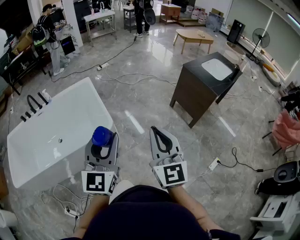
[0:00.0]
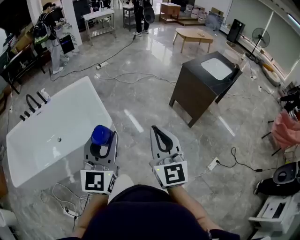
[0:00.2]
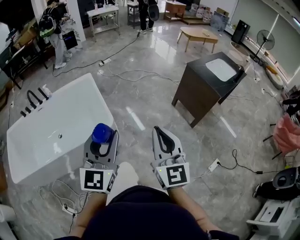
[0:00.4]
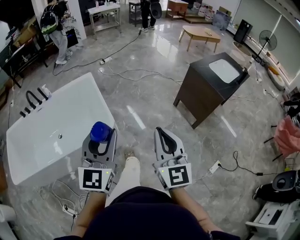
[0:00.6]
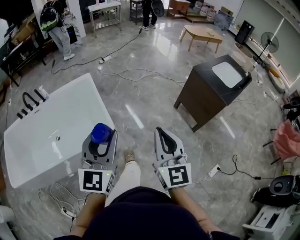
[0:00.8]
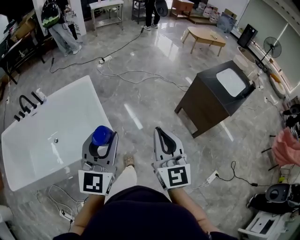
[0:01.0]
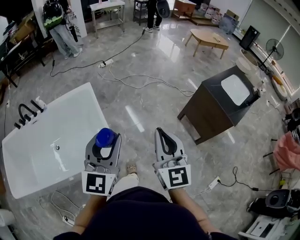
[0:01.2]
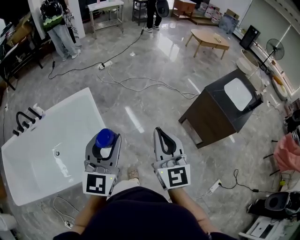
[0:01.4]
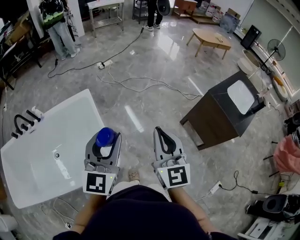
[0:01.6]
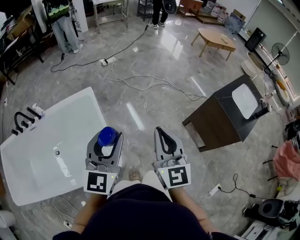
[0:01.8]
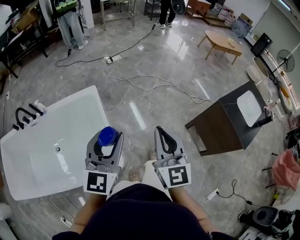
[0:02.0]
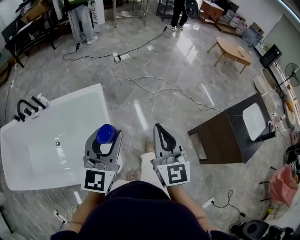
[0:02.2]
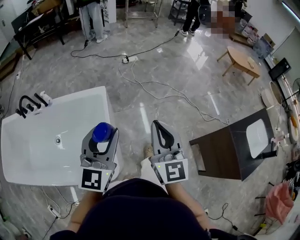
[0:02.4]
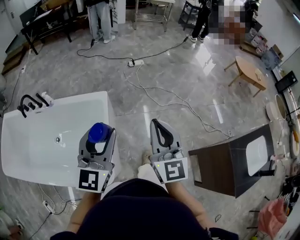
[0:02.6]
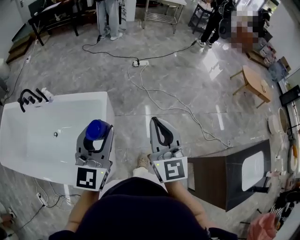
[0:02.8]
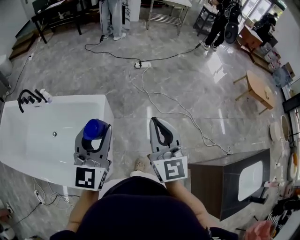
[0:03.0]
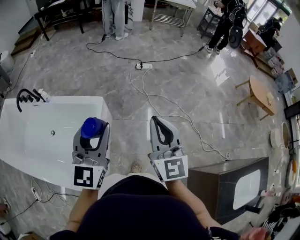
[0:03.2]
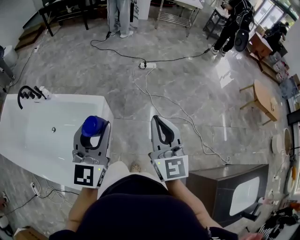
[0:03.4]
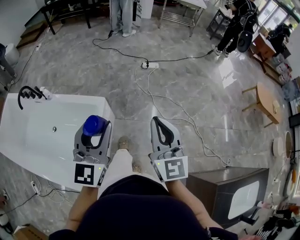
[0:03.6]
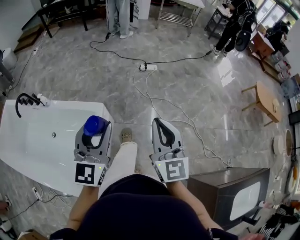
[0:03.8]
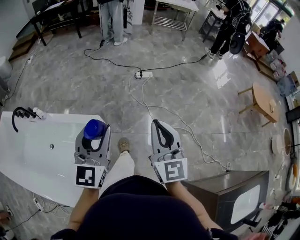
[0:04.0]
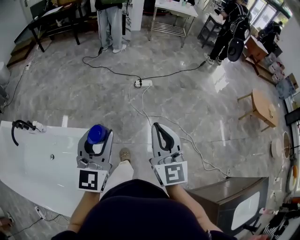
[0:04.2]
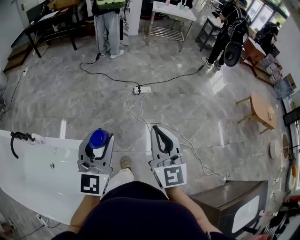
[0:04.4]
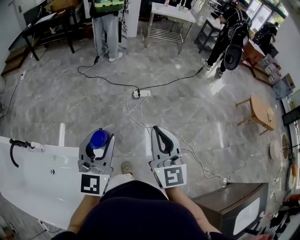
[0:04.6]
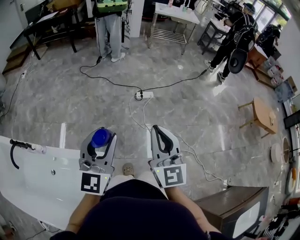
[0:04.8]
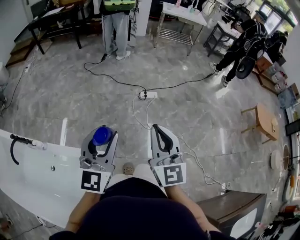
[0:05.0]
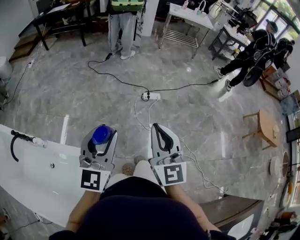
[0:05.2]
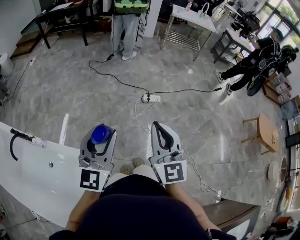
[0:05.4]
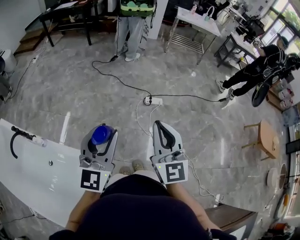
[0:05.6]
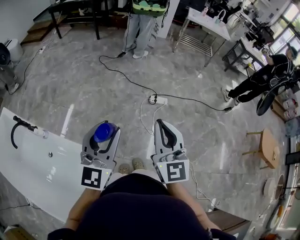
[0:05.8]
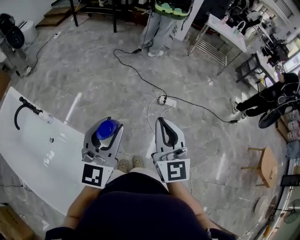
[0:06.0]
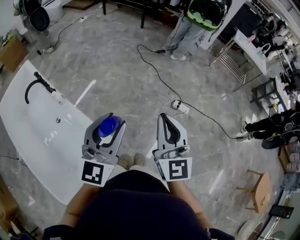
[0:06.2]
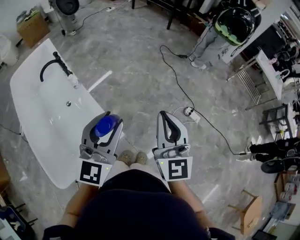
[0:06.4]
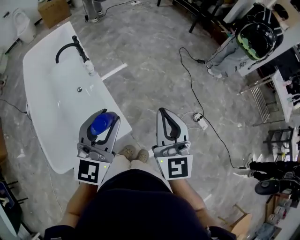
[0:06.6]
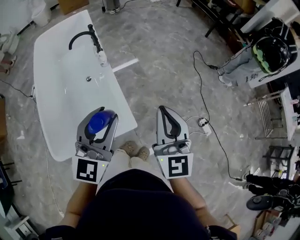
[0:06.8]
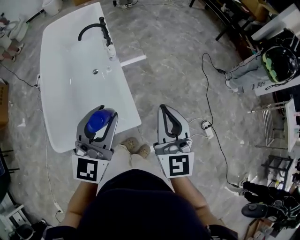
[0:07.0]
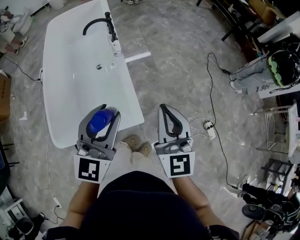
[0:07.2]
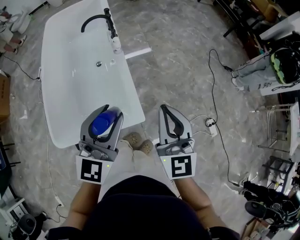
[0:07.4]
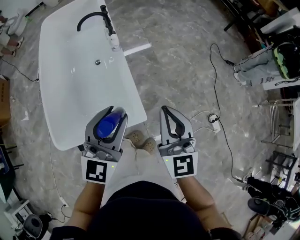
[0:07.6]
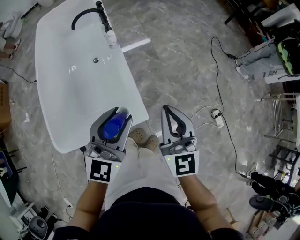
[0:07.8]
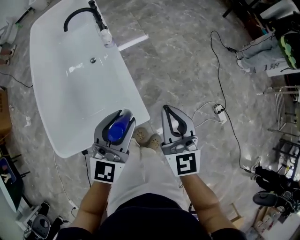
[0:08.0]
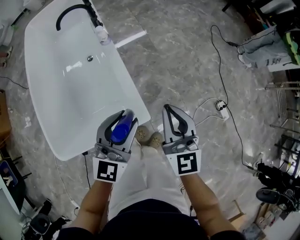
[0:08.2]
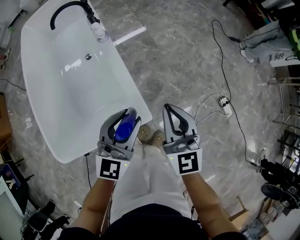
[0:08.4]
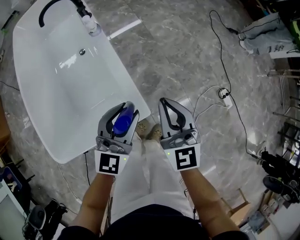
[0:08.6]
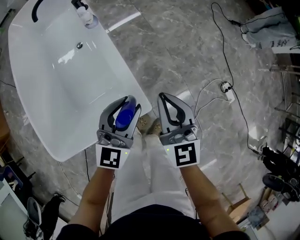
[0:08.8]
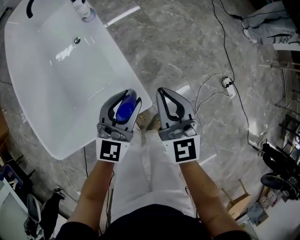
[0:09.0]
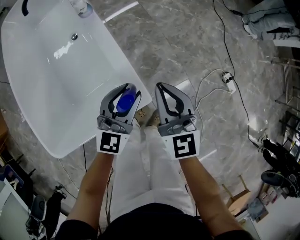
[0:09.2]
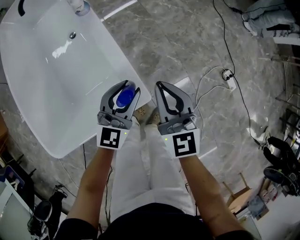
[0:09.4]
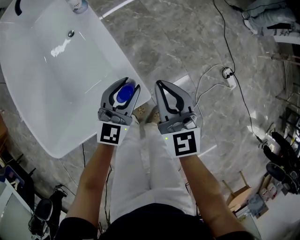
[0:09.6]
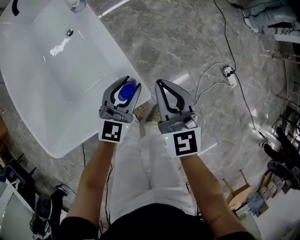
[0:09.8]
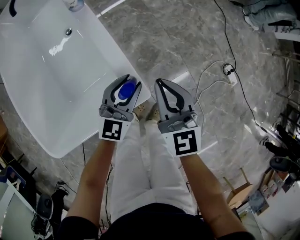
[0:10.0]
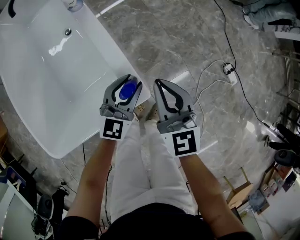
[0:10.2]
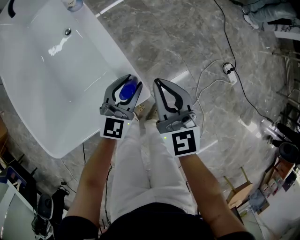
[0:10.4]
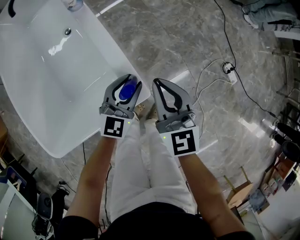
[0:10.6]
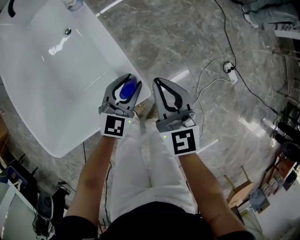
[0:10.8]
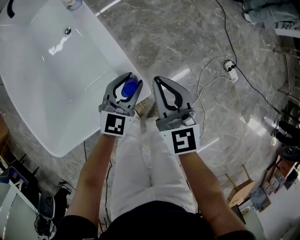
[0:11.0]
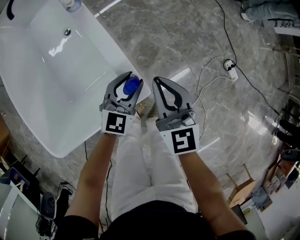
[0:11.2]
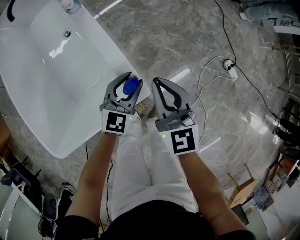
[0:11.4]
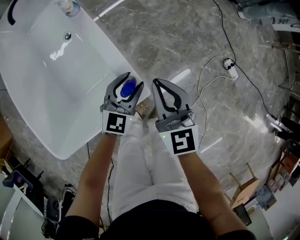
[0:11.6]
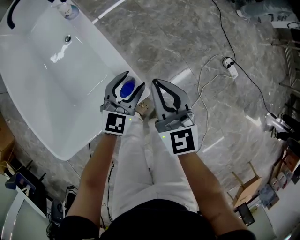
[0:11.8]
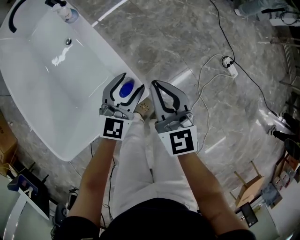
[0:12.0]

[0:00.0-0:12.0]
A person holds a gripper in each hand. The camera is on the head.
0:00.0 to 0:01.6: Both grippers travel together forward, about 40 cm.
0:01.6 to 0:03.0: The right gripper moves some 35 cm, and rotates approximately 30 degrees. The left gripper moves some 30 cm, and turns by roughly 30 degrees.
0:03.0 to 0:04.4: The two grippers go about 30 cm forward.
0:04.4 to 0:06.0: The grippers both shift forward by some 20 cm.
0:06.0 to 0:07.6: The right gripper shifts by about 25 cm, and turns by about 50 degrees; the left gripper changes place by roughly 25 cm, and rotates about 50 degrees.
0:07.6 to 0:09.0: Both grippers travel together downward, approximately 25 cm.
0:09.0 to 0:10.4: The left gripper heads downward, covering some 10 cm.
0:10.4 to 0:12.0: The left gripper opens its fingers.

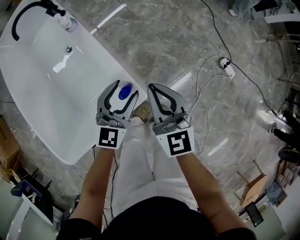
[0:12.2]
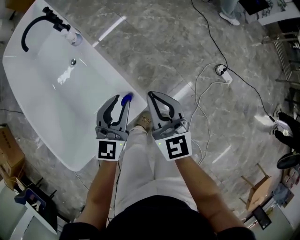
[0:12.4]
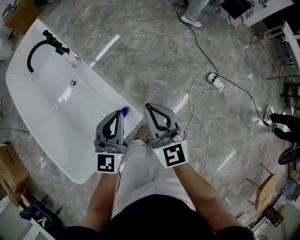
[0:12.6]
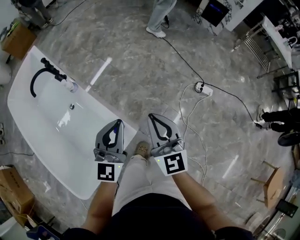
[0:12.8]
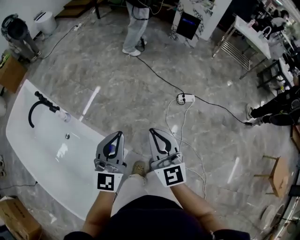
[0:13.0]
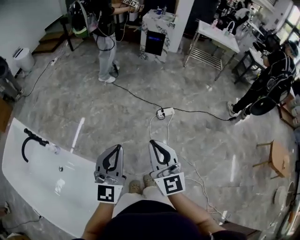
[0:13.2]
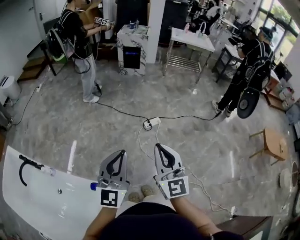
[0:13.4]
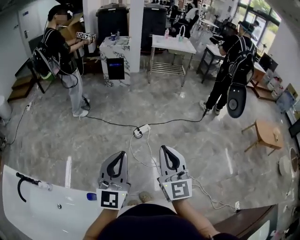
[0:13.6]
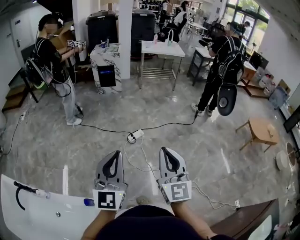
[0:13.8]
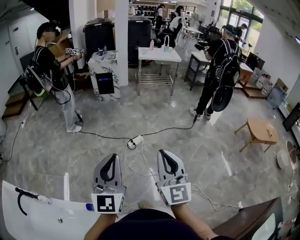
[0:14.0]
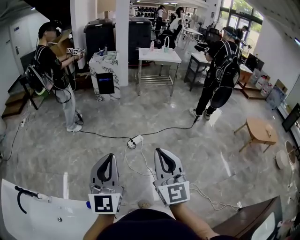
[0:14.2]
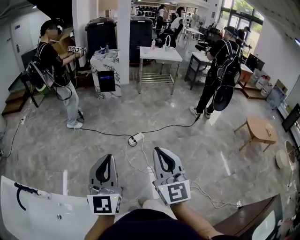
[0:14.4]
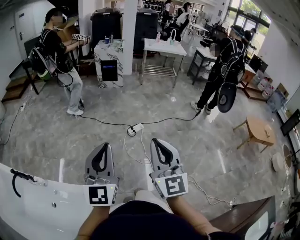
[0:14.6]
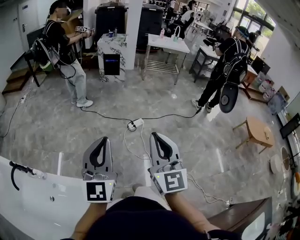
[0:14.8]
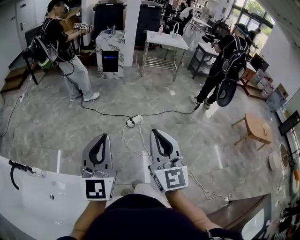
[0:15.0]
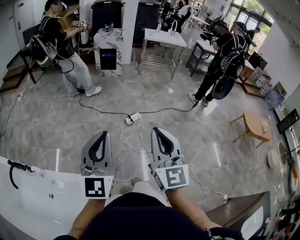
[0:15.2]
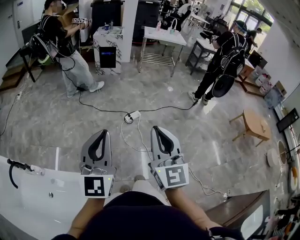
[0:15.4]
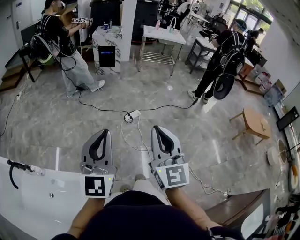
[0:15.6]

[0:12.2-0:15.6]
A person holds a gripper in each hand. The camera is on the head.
0:12.2 to 0:13.8: The left gripper shifts about 40 cm upward, rotates some 50 degrees, and closes its fingers. Meanwhile the right gripper ends up some 60 cm from where it was, and turns by about 70 degrees.
0:13.8 to 0:15.6: The grippers both shift backward and to the left by some 10 cm.

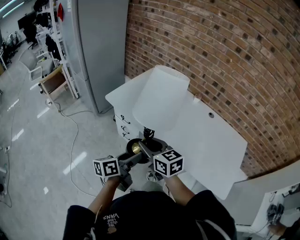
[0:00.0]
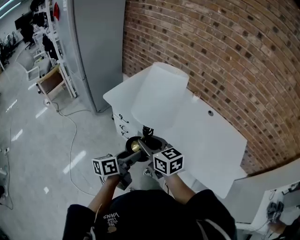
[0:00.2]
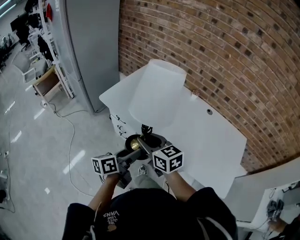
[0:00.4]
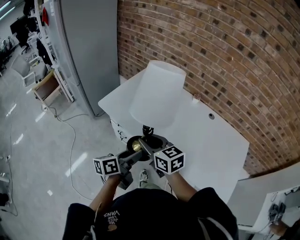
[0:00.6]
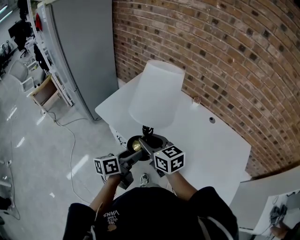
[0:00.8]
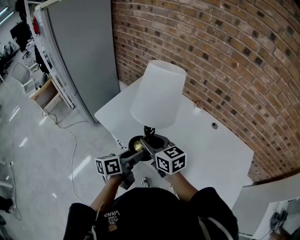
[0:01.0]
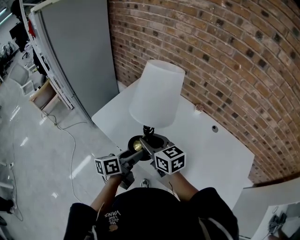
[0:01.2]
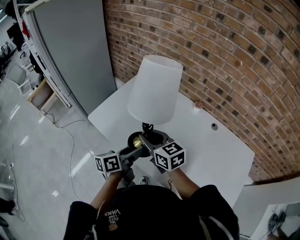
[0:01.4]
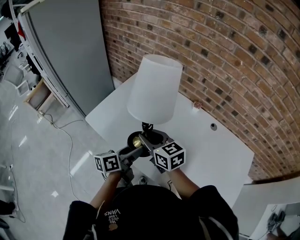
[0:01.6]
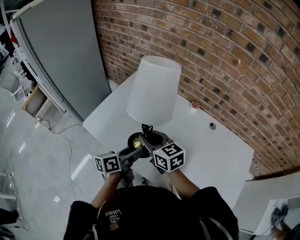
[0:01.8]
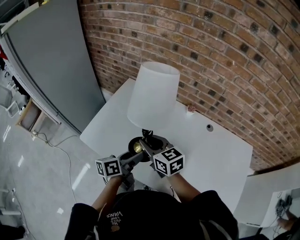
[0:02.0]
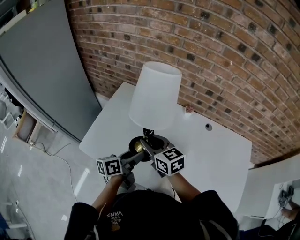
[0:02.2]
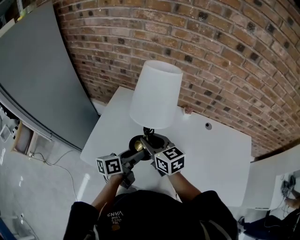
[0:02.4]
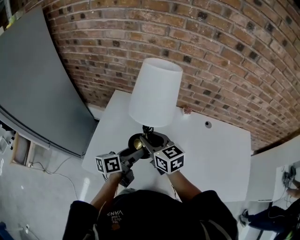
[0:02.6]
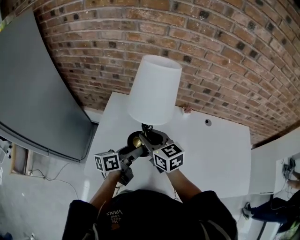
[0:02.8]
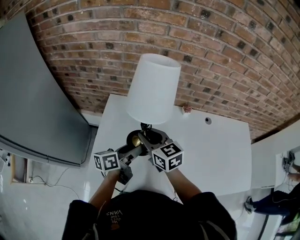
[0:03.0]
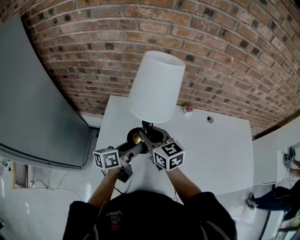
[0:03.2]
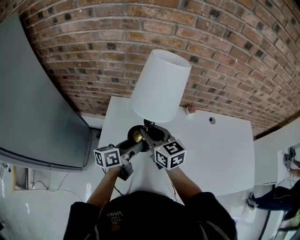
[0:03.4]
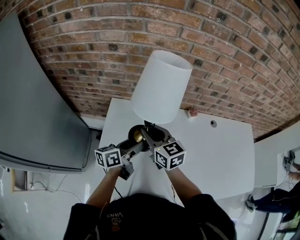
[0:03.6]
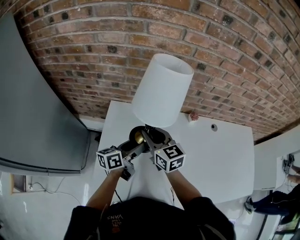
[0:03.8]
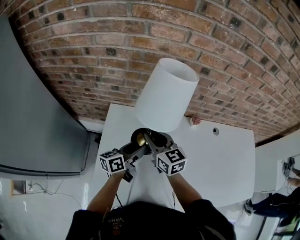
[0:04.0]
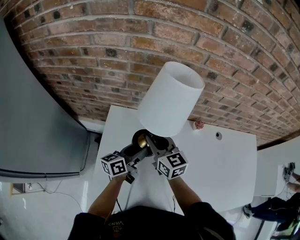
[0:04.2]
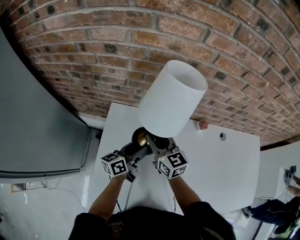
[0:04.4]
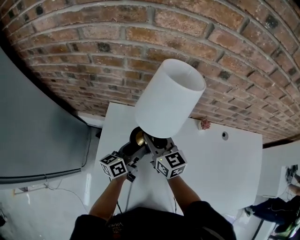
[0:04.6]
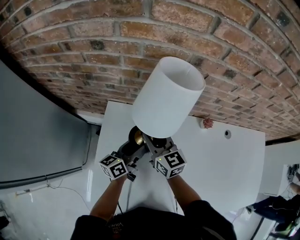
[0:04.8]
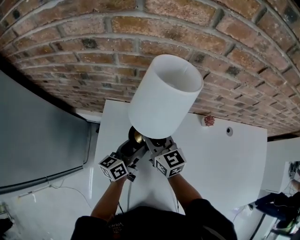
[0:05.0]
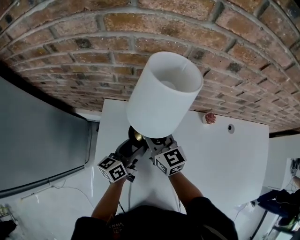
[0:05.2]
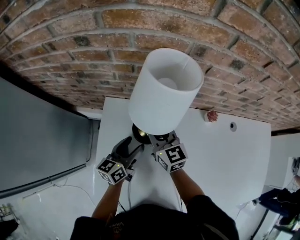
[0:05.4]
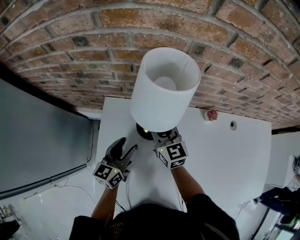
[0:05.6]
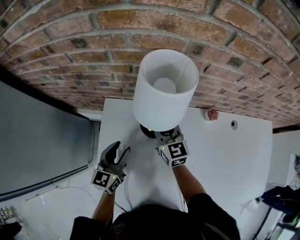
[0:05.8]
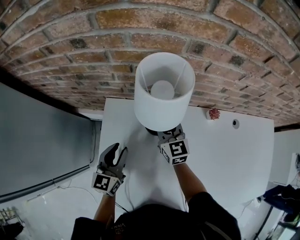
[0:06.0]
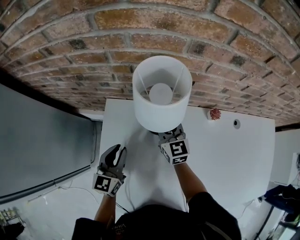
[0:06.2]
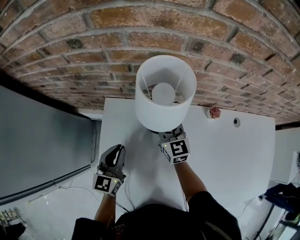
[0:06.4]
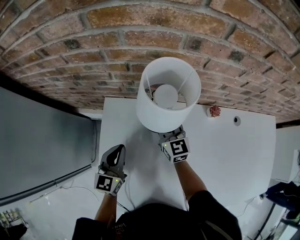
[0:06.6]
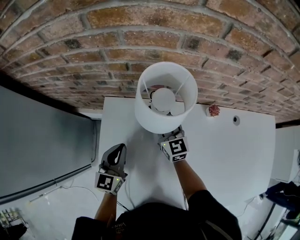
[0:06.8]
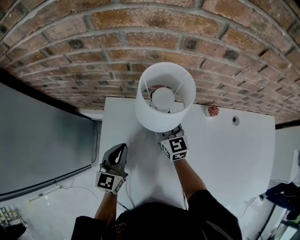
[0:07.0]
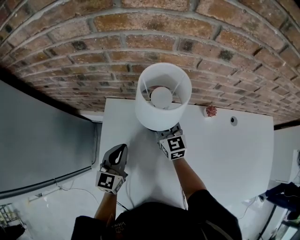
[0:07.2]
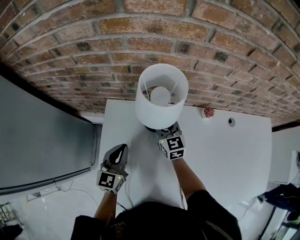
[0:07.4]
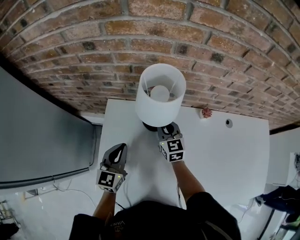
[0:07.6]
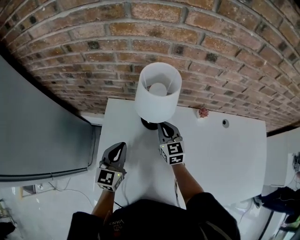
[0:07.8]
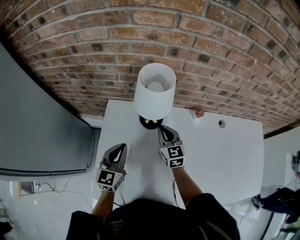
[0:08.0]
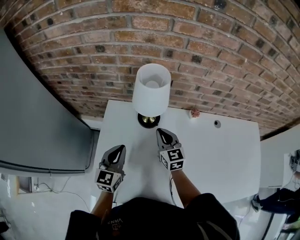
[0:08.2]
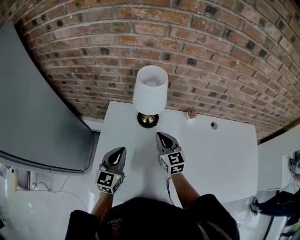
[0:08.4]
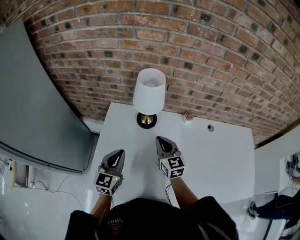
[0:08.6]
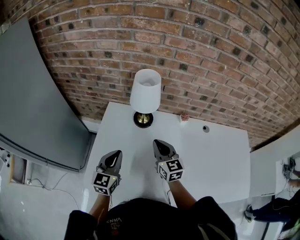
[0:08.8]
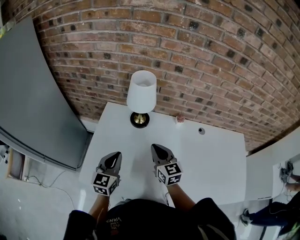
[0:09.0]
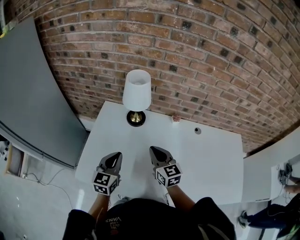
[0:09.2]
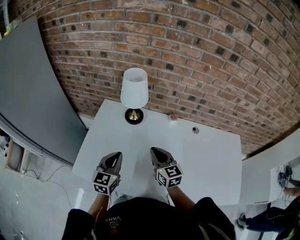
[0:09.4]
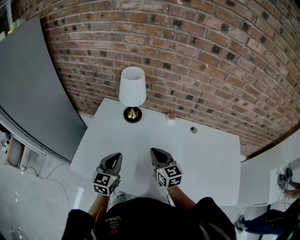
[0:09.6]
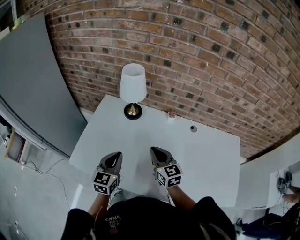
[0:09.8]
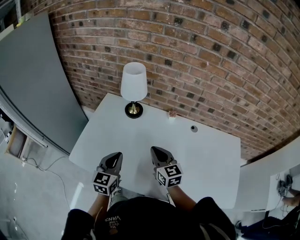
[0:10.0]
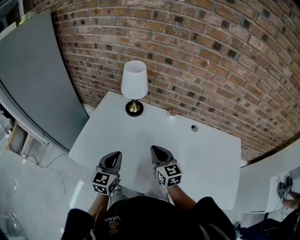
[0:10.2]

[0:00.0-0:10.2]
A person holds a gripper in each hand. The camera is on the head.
0:00.0 to 0:01.4: The two grippers go roughly 25 cm forward.
0:01.4 to 0:03.0: The left gripper ends up about 25 cm from where it was, and swivels approximately 30 degrees; the right gripper ends up roughly 25 cm from where it was, and changes its angle by approximately 30 degrees.
0:03.0 to 0:04.4: The grippers both shift forward and downward by approximately 15 cm.
0:04.4 to 0:05.8: The left gripper shifts some 10 cm to the left, changes its angle by approximately 40 degrees, and closes. Meanwhile the right gripper shifts roughly 10 cm forward and downward.
0:05.8 to 0:07.2: The left gripper closes up.
0:07.2 to 0:08.8: The two grippers go about 20 cm backward and upward. The right gripper closes its fingers.
0:08.8 to 0:10.2: The grippers both shift backward and to the right by roughly 15 cm.
